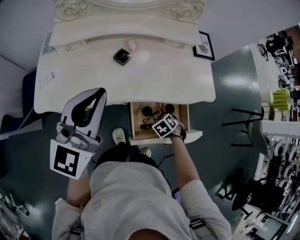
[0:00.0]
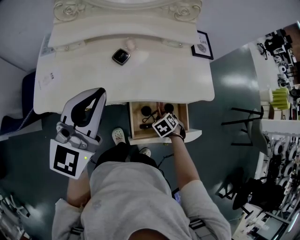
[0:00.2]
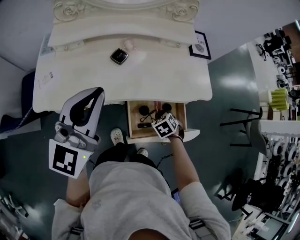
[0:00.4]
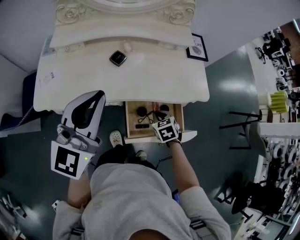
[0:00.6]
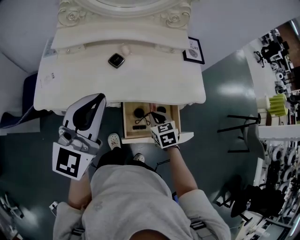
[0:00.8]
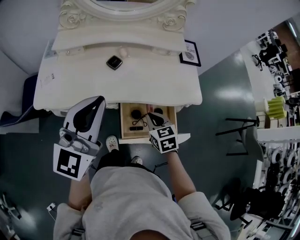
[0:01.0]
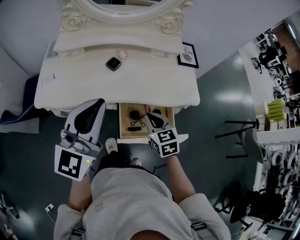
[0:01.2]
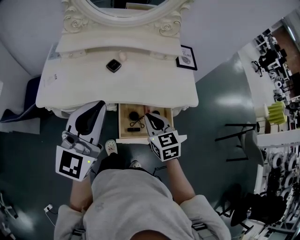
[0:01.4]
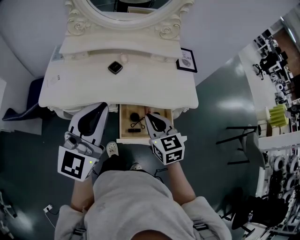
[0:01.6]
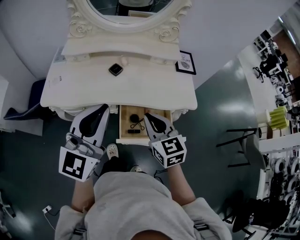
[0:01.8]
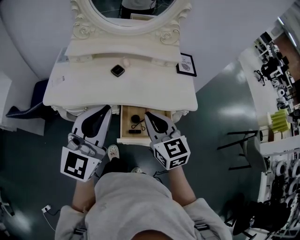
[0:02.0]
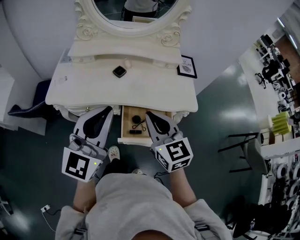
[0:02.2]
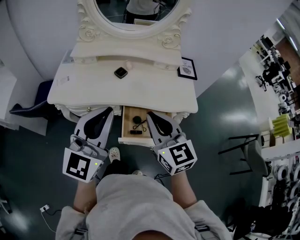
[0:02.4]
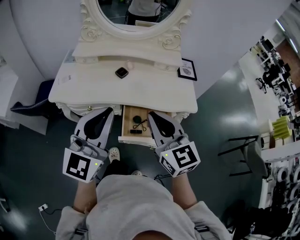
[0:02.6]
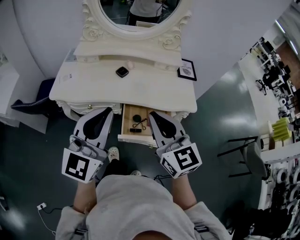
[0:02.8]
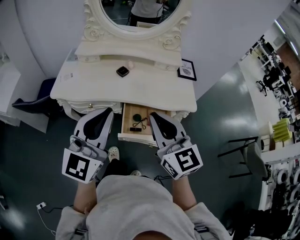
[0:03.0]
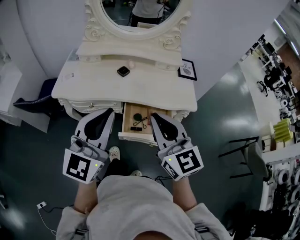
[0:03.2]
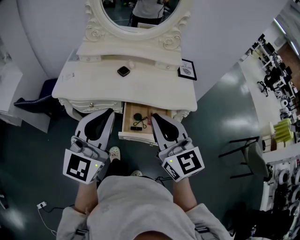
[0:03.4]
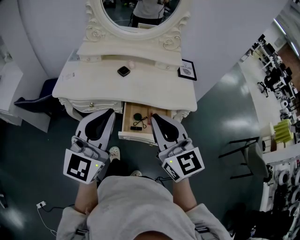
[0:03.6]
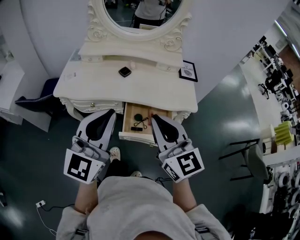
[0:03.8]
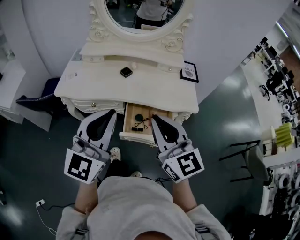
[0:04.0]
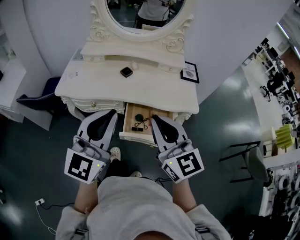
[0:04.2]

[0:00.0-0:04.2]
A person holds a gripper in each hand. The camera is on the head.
0:00.0 to 0:01.4: The left gripper shifts by roughly 10 cm. Meanwhile the right gripper moves upward, roughly 25 cm, and points its fingers some 50 degrees further upward.
0:01.4 to 0:02.8: The right gripper heads upward and backward, covering approximately 20 cm, and changes its angle by approximately 30 degrees. Meanwhile the left gripper heads backward, covering some 10 cm.
0:02.8 to 0:04.2: The grippers move only a little.

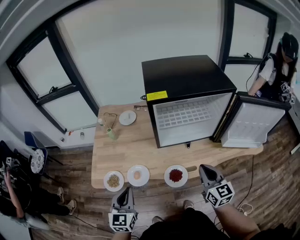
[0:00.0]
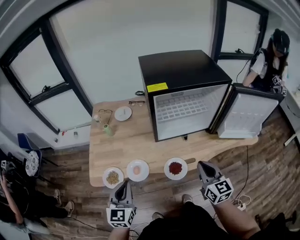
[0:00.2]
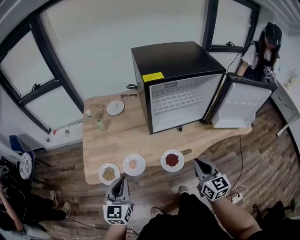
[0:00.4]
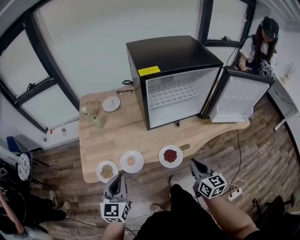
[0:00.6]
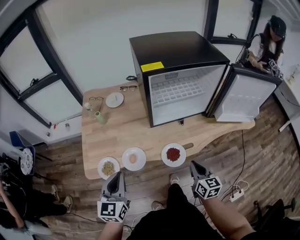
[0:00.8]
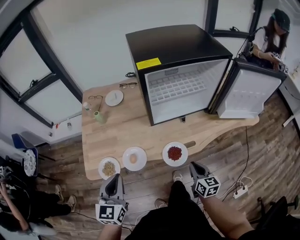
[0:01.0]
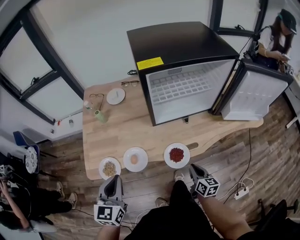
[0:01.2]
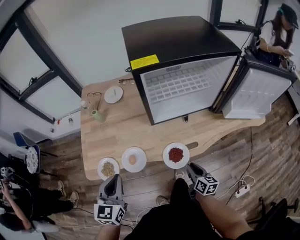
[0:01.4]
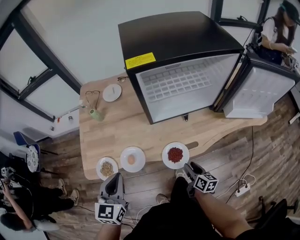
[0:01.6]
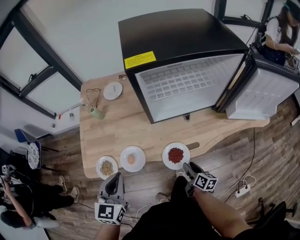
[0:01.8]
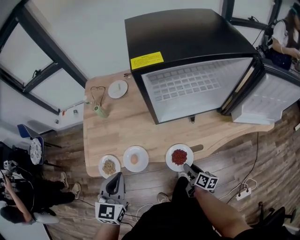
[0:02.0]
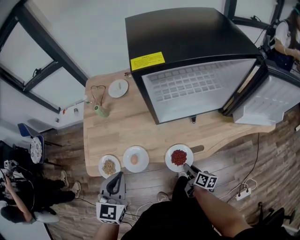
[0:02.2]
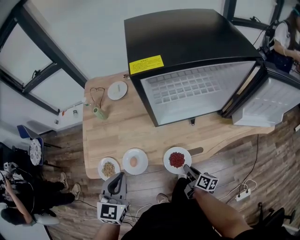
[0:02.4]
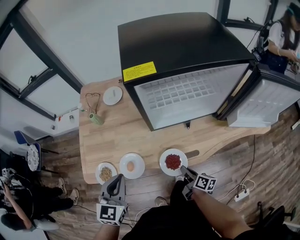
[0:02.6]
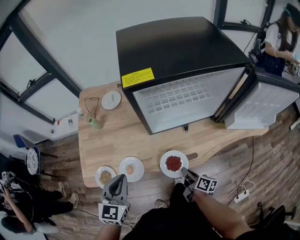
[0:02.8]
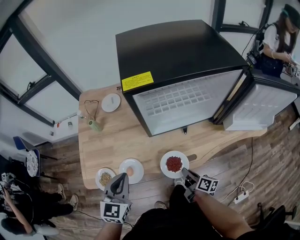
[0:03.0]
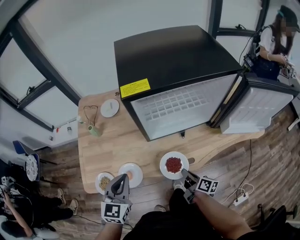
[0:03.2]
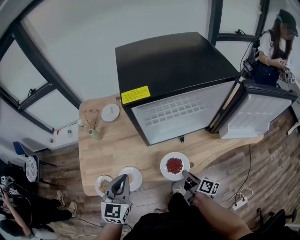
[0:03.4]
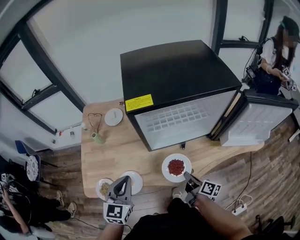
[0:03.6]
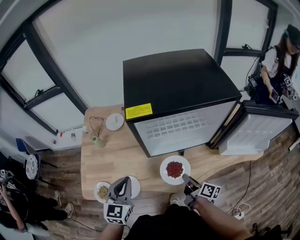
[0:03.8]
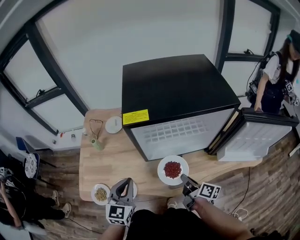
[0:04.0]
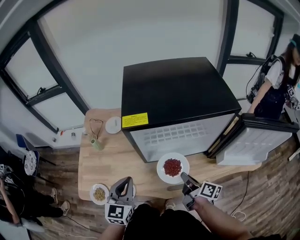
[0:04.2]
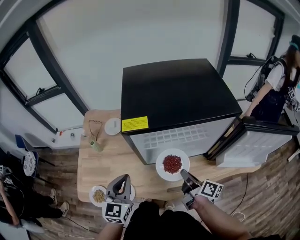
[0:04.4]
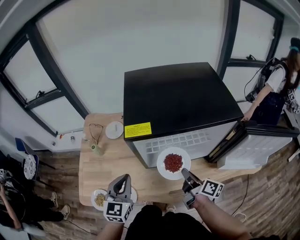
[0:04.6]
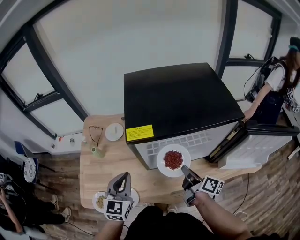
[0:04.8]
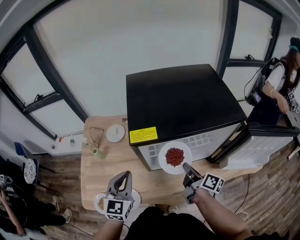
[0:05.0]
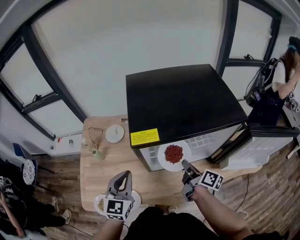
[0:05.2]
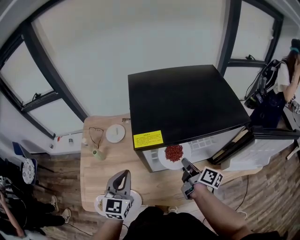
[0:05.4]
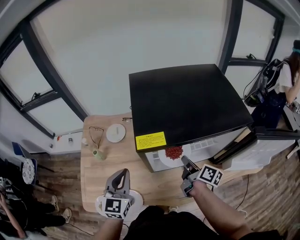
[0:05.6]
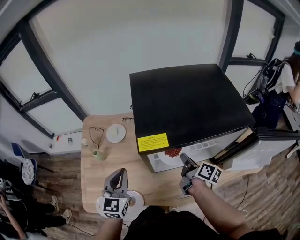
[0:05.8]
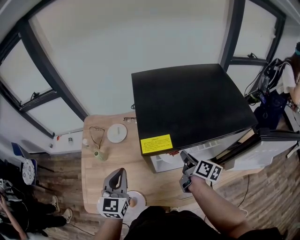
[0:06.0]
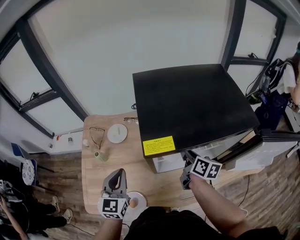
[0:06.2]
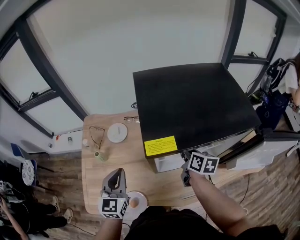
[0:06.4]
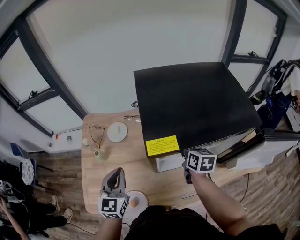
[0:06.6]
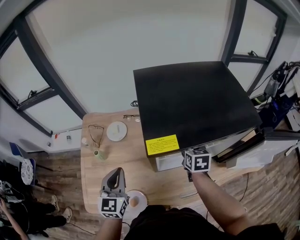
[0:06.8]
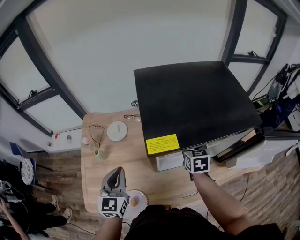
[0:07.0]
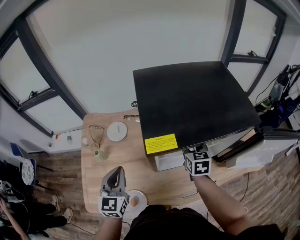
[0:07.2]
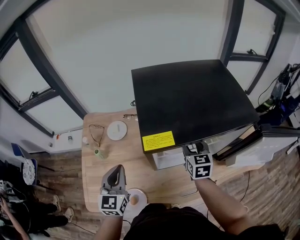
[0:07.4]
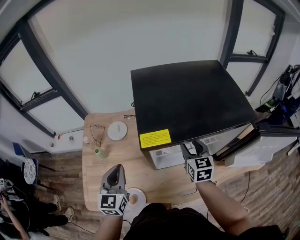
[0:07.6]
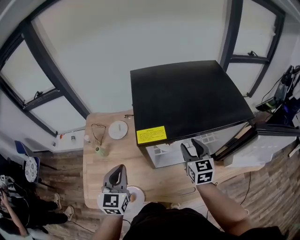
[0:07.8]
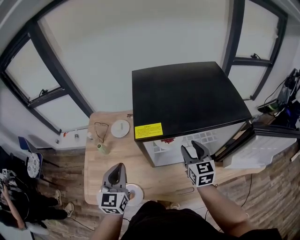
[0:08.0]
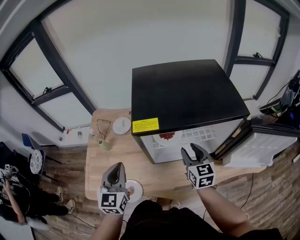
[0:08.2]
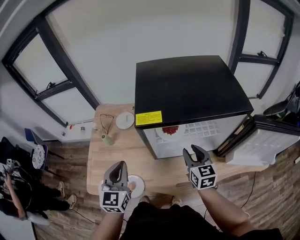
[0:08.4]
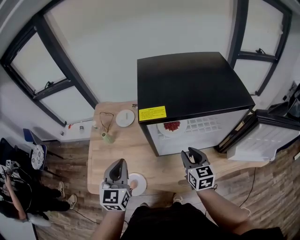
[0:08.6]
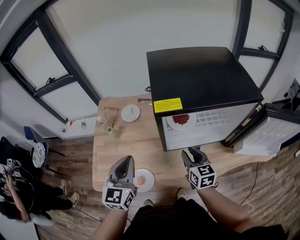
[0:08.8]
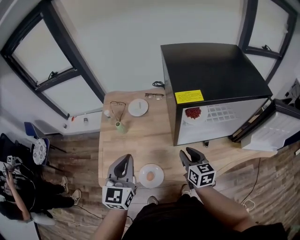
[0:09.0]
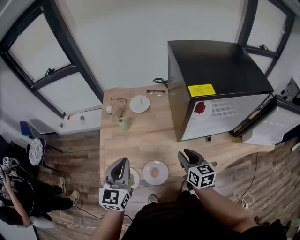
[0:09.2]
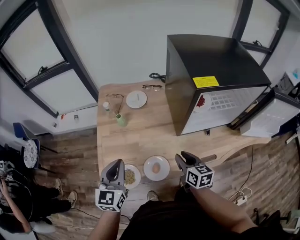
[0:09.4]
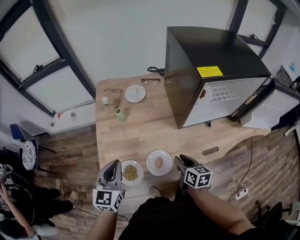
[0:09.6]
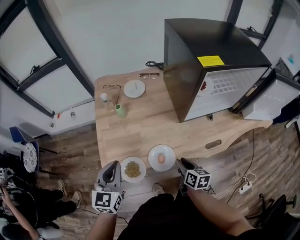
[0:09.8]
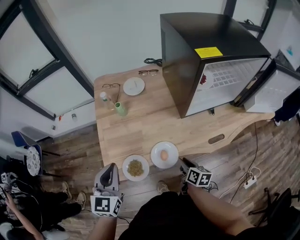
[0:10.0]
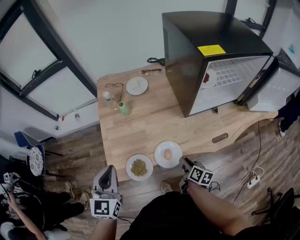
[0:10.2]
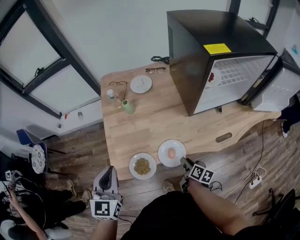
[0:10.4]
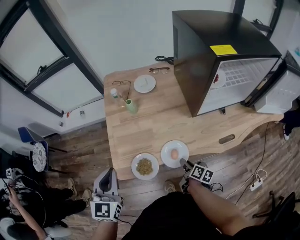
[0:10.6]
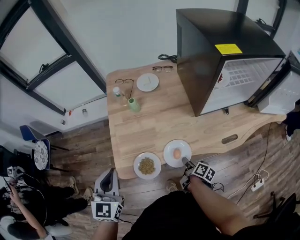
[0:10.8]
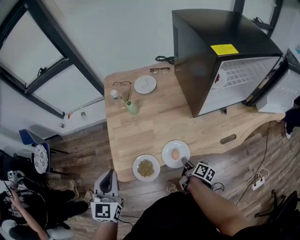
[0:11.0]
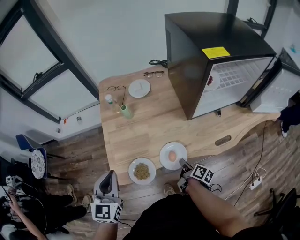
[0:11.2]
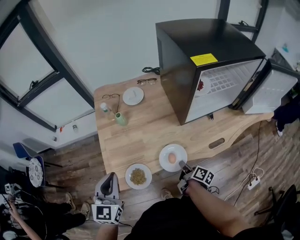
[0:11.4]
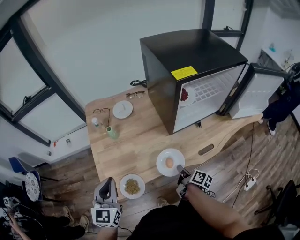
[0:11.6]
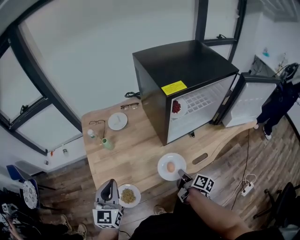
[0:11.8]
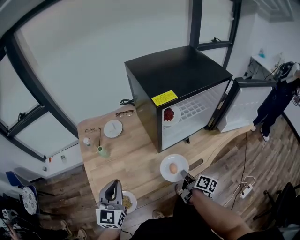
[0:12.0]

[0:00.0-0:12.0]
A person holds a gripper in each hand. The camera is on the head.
0:00.0 to 0:01.6: The left gripper shifts by approximately 5 cm, while the right gripper travels downward by roughly 25 cm, turns by about 40 degrees, and opens up.
0:01.6 to 0:03.0: The left gripper shifts some 5 cm forward; the right gripper ends up some 5 cm from where it was, turns by roughly 20 degrees, and closes its fingers.
0:03.0 to 0:04.4: The left gripper goes approximately 10 cm forward, to the right and upward. The right gripper travels upward and forward by approximately 20 cm.
0:04.4 to 0:06.0: The left gripper moves forward and to the left, some 10 cm. Meanwhile the right gripper travels forward by roughly 15 cm.
0:06.0 to 0:07.6: The right gripper rotates around the line of its fingers by about 50 degrees, counterclockwise from behind, and opens.
0:07.6 to 0:09.0: The left gripper travels backward and to the left by about 10 cm, while the right gripper goes approximately 20 cm to the left, backward and downward.
0:09.0 to 0:10.4: The right gripper shifts roughly 30 cm downward, backward and to the left, and rolls clockwise, seen from behind, by some 50 degrees, while the left gripper moves to the left and backward, roughly 20 cm.
0:10.4 to 0:12.0: The right gripper heads to the right and upward, covering approximately 20 cm, changes its angle by roughly 20 degrees, and closes its fingers, while the left gripper travels to the right and forward by about 15 cm.

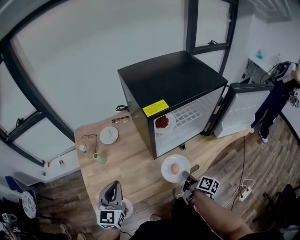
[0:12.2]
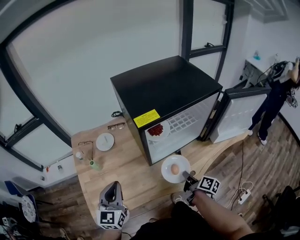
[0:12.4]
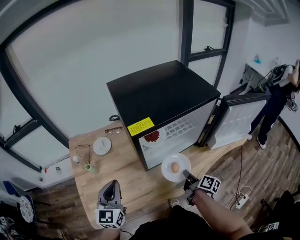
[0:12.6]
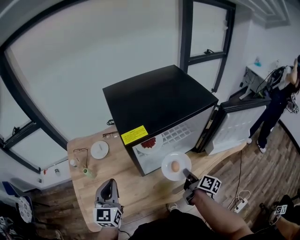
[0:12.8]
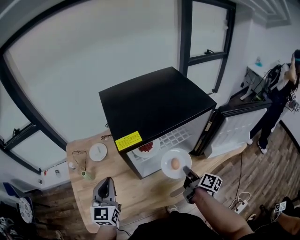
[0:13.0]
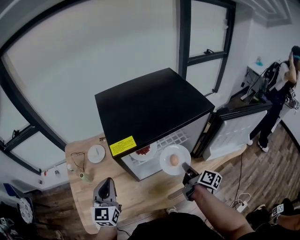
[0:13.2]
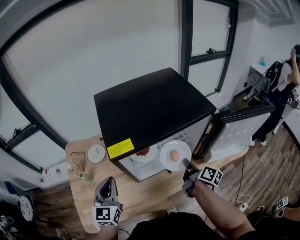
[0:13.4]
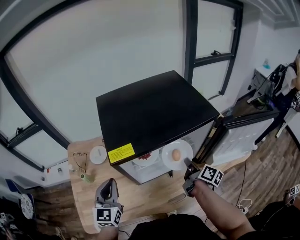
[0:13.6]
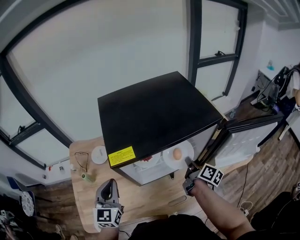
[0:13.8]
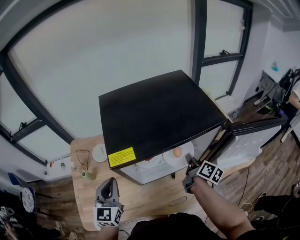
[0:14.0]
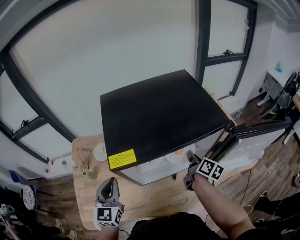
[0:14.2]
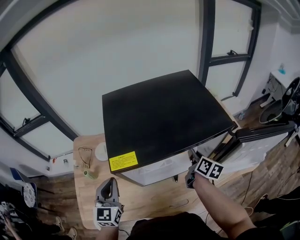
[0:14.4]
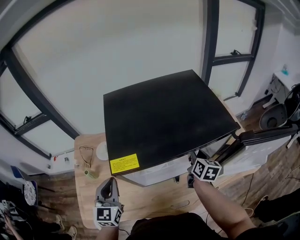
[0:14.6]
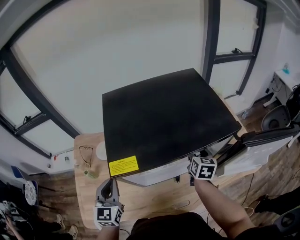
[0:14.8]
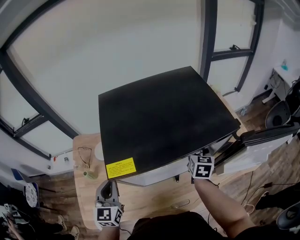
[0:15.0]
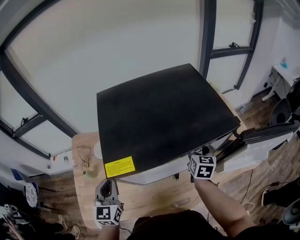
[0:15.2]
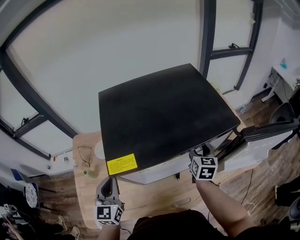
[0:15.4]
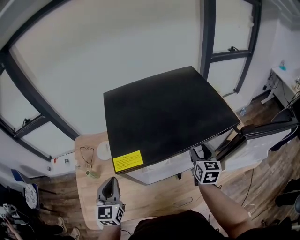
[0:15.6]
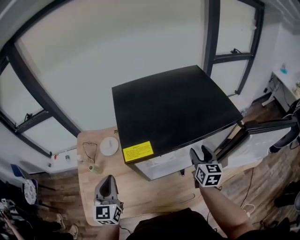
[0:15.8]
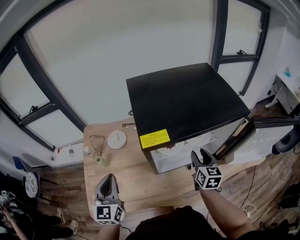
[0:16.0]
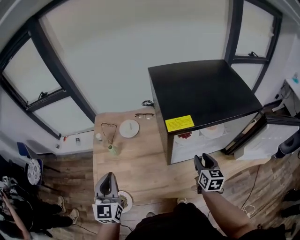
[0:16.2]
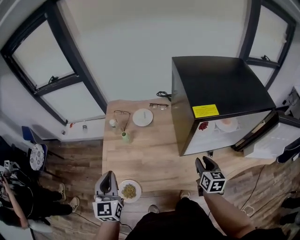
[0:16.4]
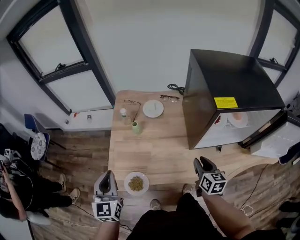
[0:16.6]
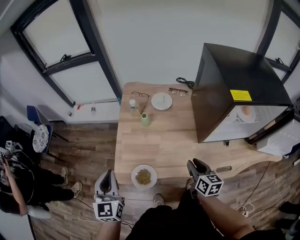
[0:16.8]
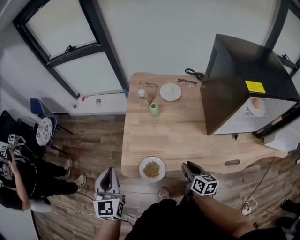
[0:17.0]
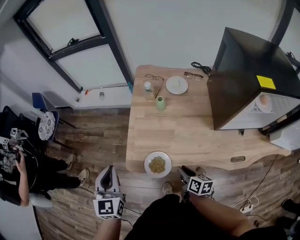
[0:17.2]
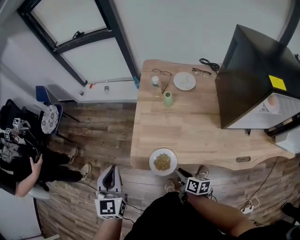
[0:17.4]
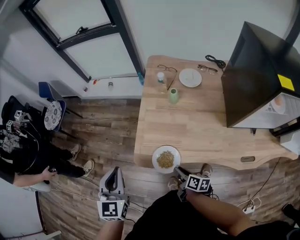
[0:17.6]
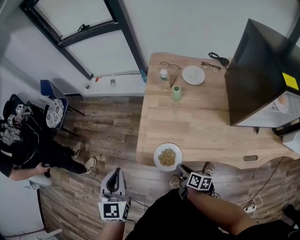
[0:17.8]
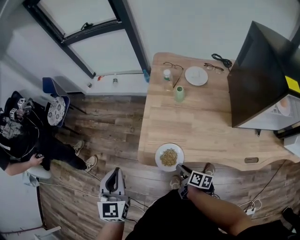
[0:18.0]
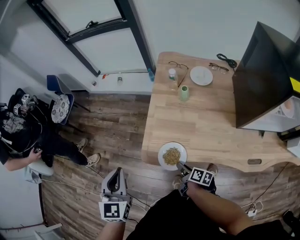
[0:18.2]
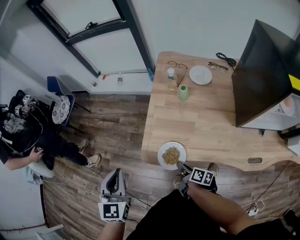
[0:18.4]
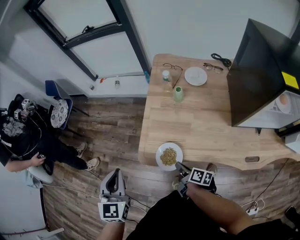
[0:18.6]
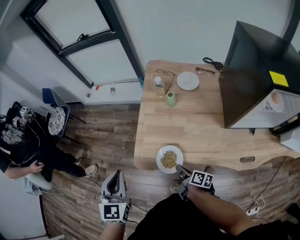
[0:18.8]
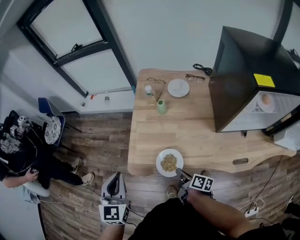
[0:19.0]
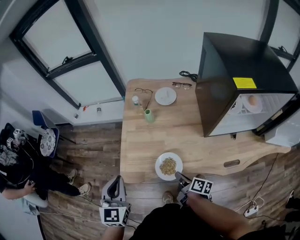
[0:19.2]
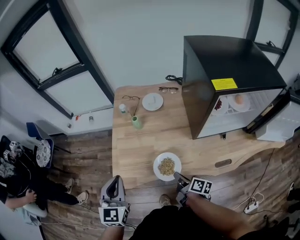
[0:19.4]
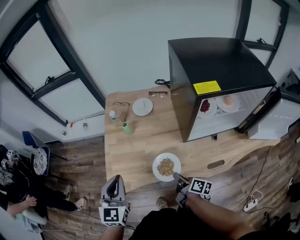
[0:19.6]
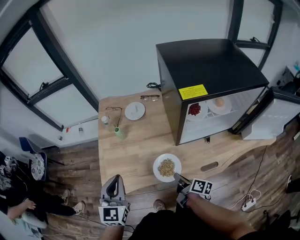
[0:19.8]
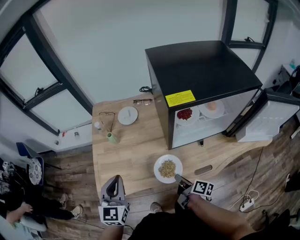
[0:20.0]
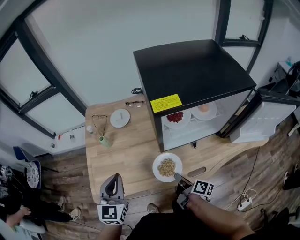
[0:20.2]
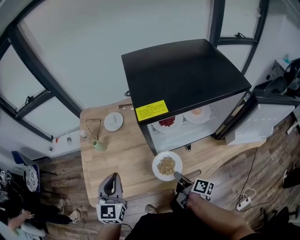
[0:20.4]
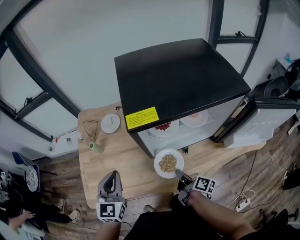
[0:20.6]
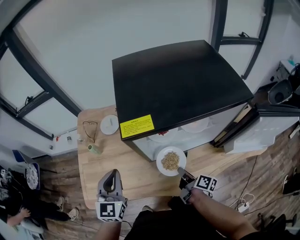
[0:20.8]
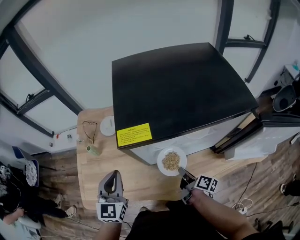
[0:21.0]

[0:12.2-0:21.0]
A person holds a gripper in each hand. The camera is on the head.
0:12.2 to 0:13.6: The left gripper moves forward and to the right, roughly 15 cm. The right gripper is displaced forward, to the right and upward by approximately 25 cm.
0:13.6 to 0:15.2: The right gripper moves forward, some 10 cm, rolls counterclockwise, seen from behind, by approximately 50 degrees, and opens.
0:15.2 to 0:16.6: Both grippers move to the left and backward, about 35 cm. The right gripper changes its angle by roughly 30 degrees, and closes.
0:16.6 to 0:18.0: The right gripper heads to the left and downward, covering some 35 cm, and turns by approximately 50 degrees. Meanwhile the left gripper shifts approximately 15 cm to the left.
0:18.0 to 0:19.6: The right gripper shifts some 20 cm to the right and upward, rotates about 20 degrees, and closes. The left gripper goes about 20 cm to the right.
0:19.6 to 0:21.0: The left gripper heads to the right and forward, covering roughly 25 cm. The right gripper shifts approximately 25 cm to the right.
